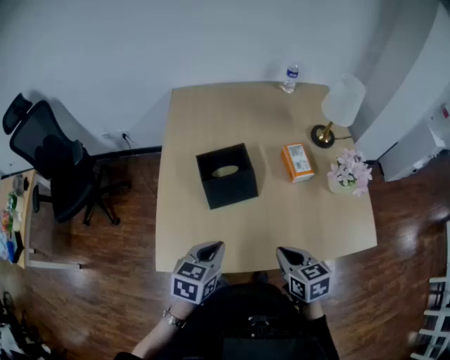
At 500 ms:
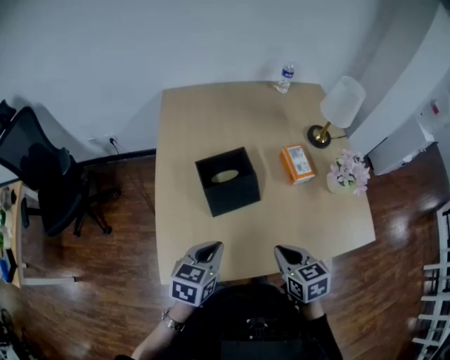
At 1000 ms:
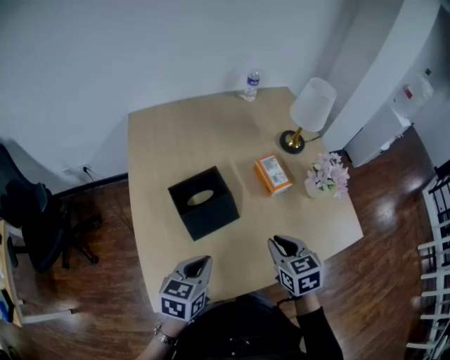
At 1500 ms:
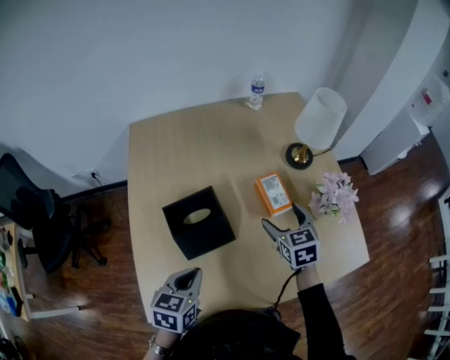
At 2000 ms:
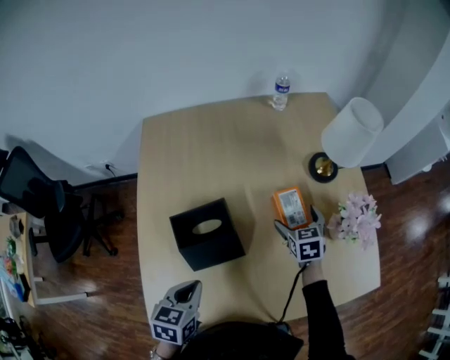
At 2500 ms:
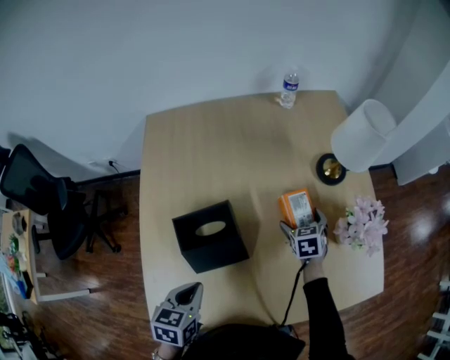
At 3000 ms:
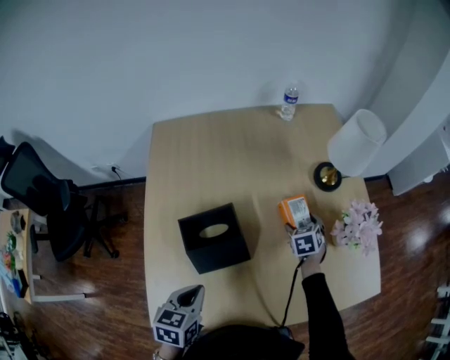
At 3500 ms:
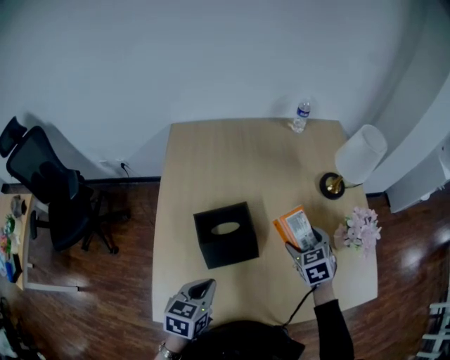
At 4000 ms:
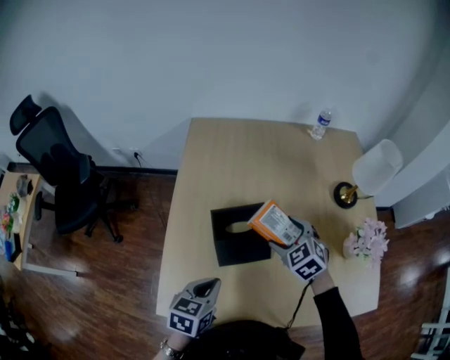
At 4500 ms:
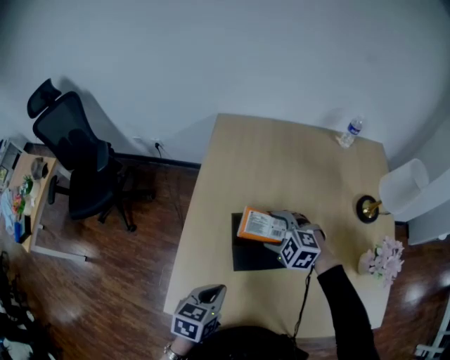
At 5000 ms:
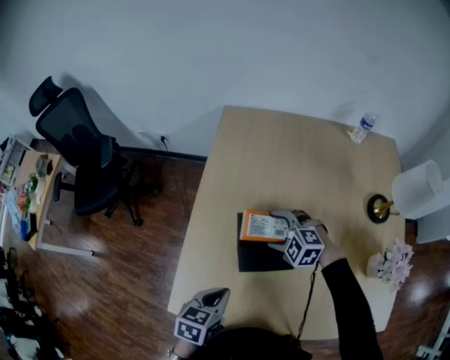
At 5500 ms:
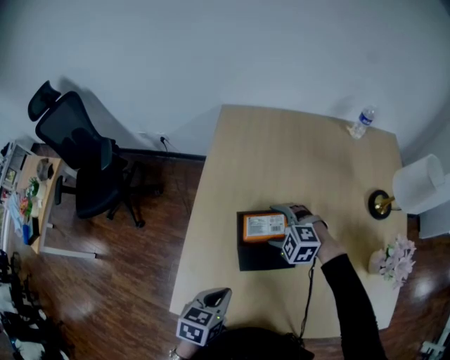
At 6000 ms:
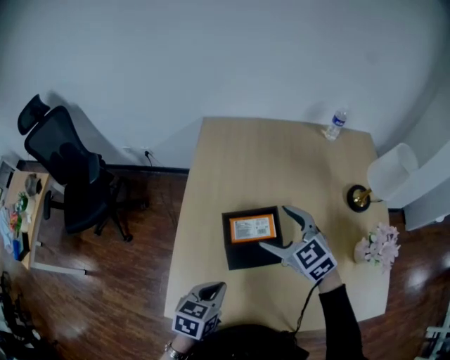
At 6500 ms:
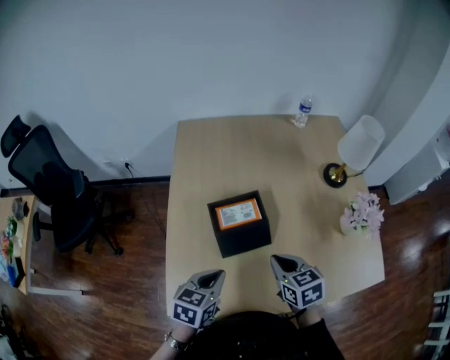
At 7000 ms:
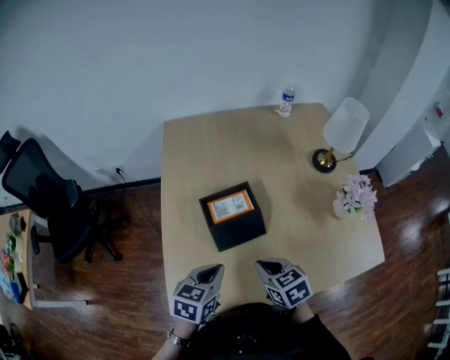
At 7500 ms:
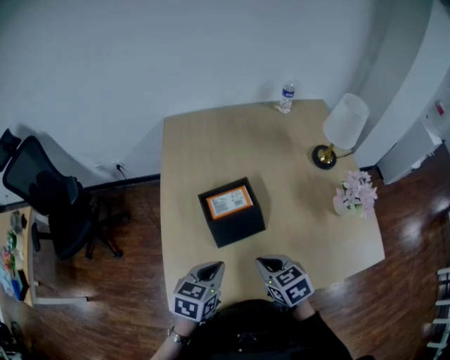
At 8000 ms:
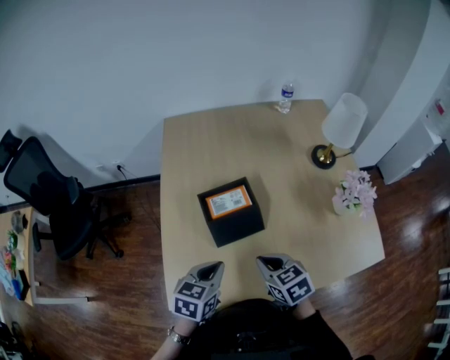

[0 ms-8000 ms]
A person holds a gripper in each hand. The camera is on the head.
0 ms to 2000 ms: The left gripper moves forward, approximately 10 cm; the right gripper travels forward by approximately 35 cm, swivels some 20 degrees, and opens its fingers.
2000 ms to 4000 ms: The right gripper heads to the left, upward and backward, covering roughly 20 cm, and turns by approximately 40 degrees.
4000 ms to 6000 ms: The right gripper moves to the left and upward, some 10 cm, and rotates roughly 20 degrees.
6000 ms to 8000 ms: The right gripper travels backward by roughly 20 cm, turns by about 30 degrees, and closes its fingers.

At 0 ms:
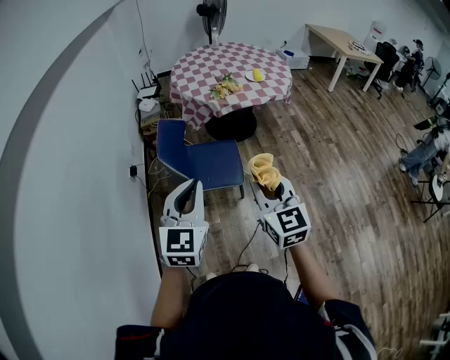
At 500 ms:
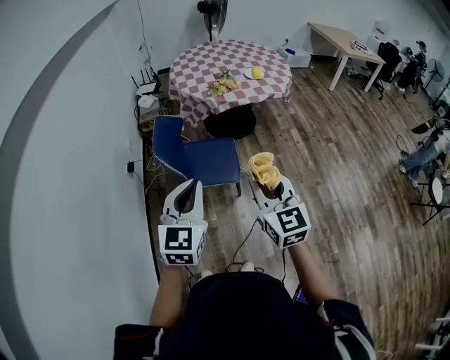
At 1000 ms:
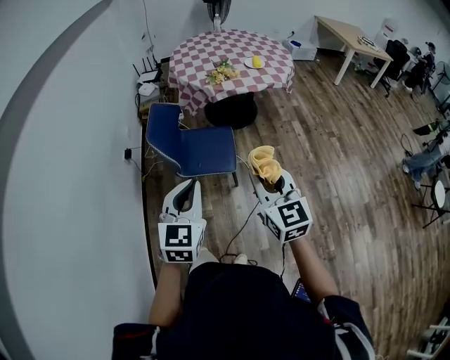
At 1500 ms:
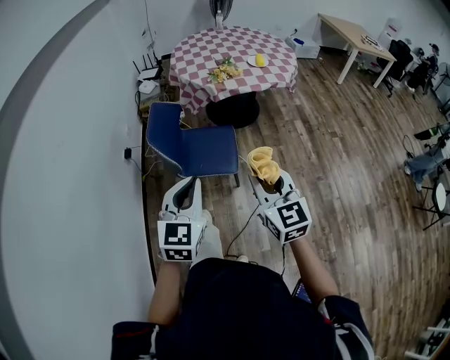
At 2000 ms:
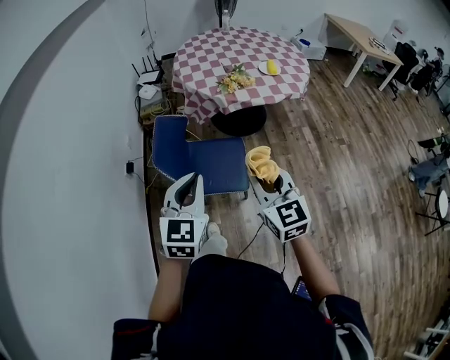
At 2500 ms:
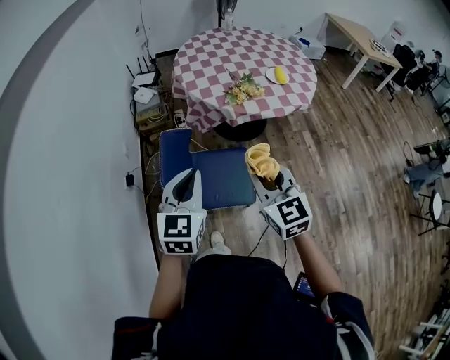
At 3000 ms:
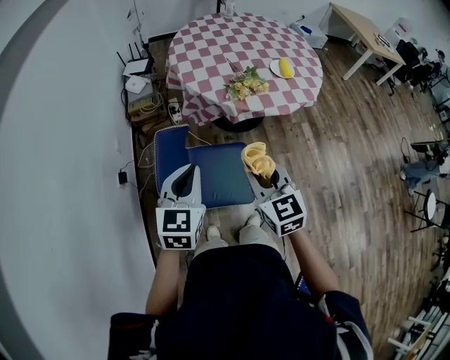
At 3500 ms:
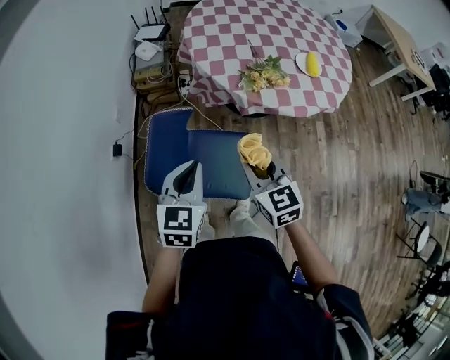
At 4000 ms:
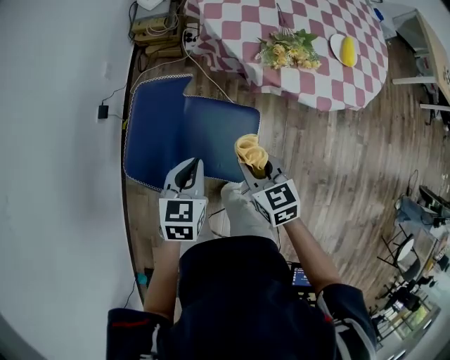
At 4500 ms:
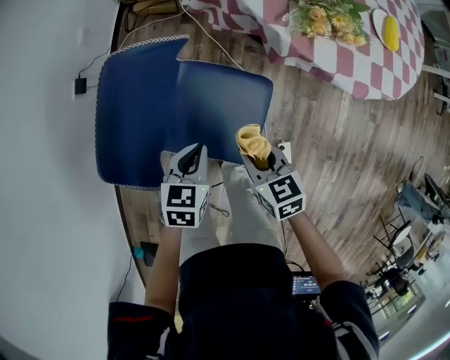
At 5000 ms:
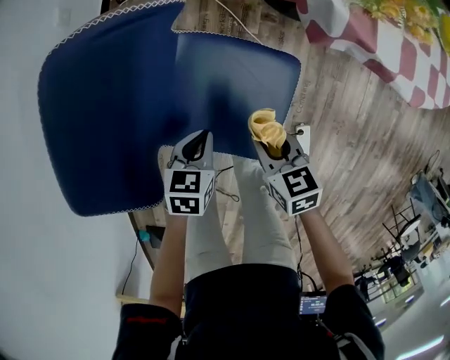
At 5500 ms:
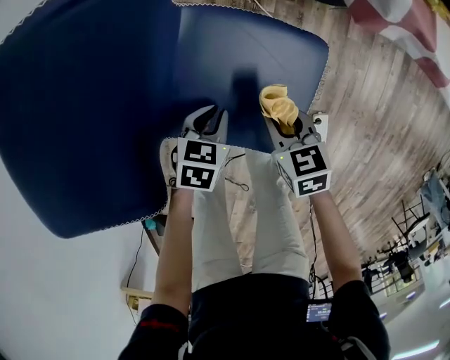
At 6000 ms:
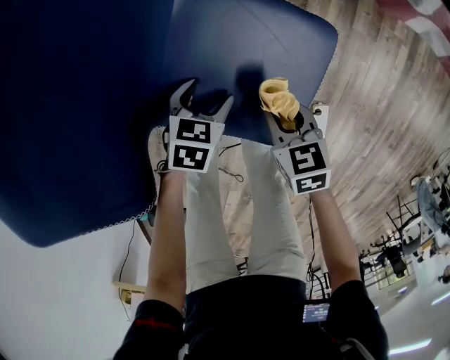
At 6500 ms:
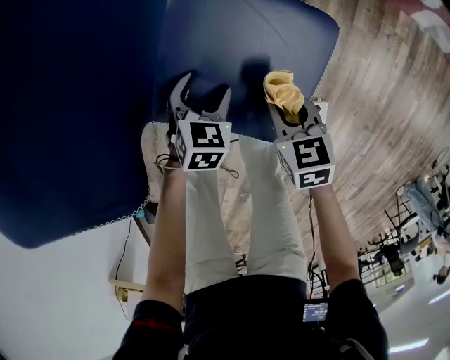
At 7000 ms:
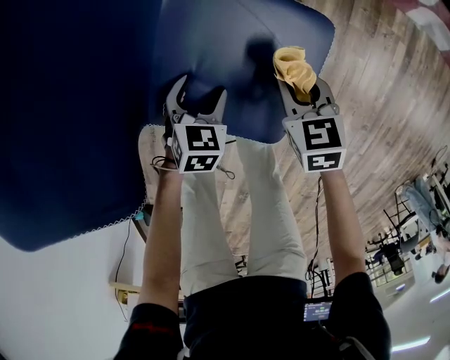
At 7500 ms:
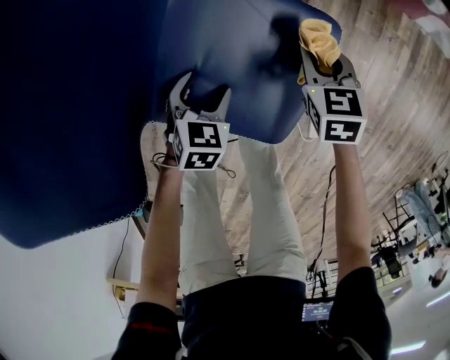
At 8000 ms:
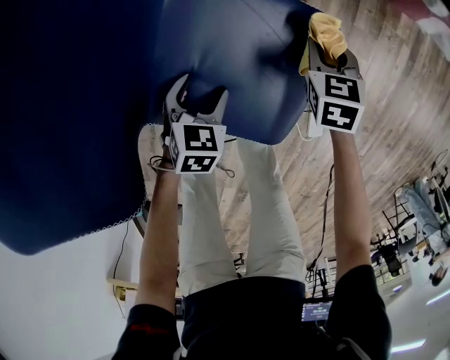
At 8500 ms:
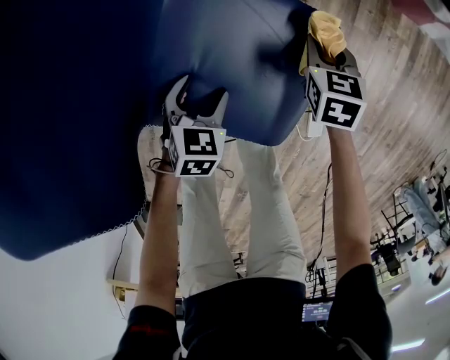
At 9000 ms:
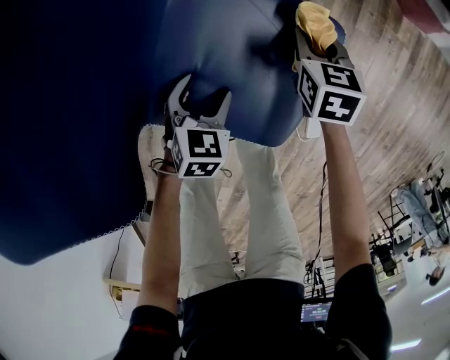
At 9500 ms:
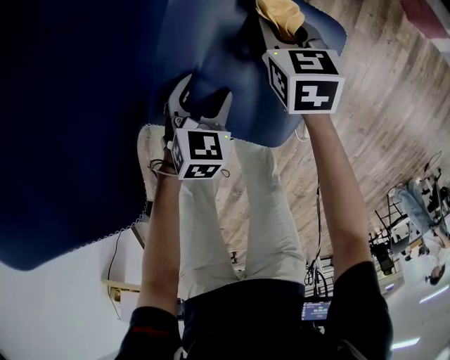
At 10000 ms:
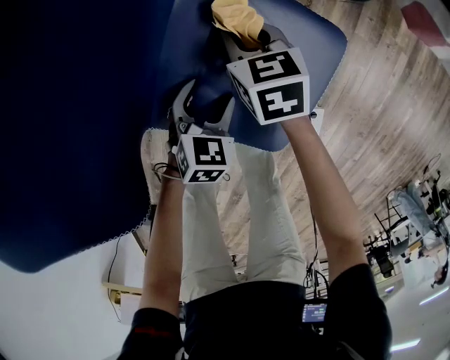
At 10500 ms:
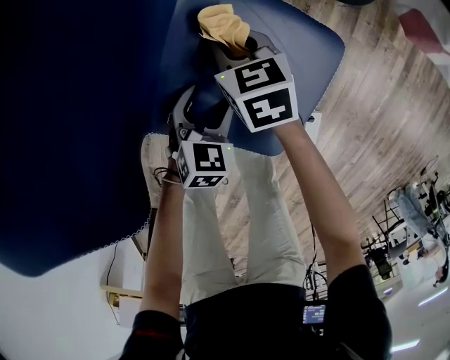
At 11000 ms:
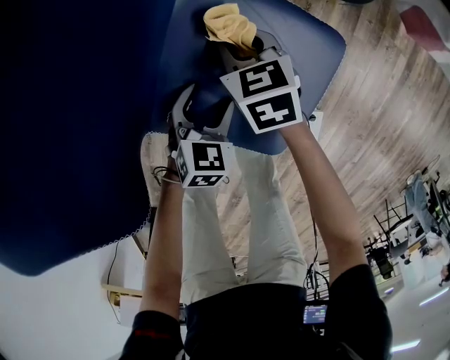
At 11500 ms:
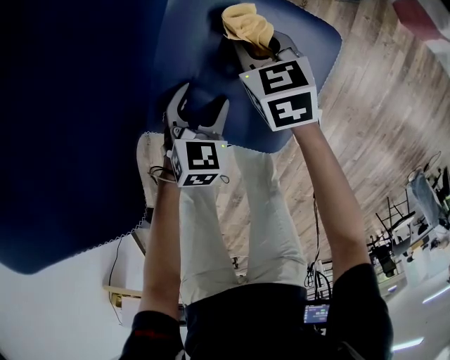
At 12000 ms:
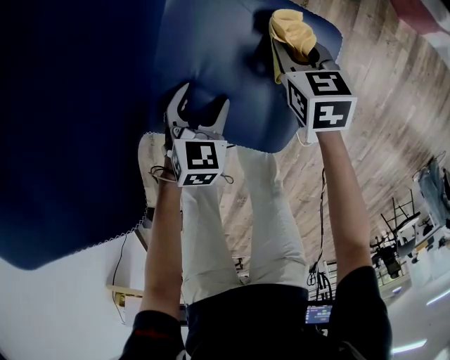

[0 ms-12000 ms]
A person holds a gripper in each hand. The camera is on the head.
0 ms to 2000 ms: The left gripper travels forward and downward by roughly 15 cm; the right gripper travels forward by approximately 15 cm.
2000 ms to 4000 ms: Both grippers move forward and downward, roughly 40 cm. The left gripper swivels roughly 40 degrees, while the right gripper angles its fingers downward, by roughly 30 degrees.
4000 ms to 6000 ms: The two grippers go roughly 40 cm downward. The right gripper changes its angle by about 20 degrees, while the left gripper swivels some 20 degrees, and opens its fingers.
6000 ms to 8000 ms: The right gripper moves forward and to the right, approximately 15 cm, and swivels about 20 degrees.
8000 ms to 10000 ms: The right gripper is displaced to the left by approximately 20 cm, and changes its angle by some 20 degrees.
10000 ms to 12000 ms: The right gripper moves to the right, roughly 10 cm.

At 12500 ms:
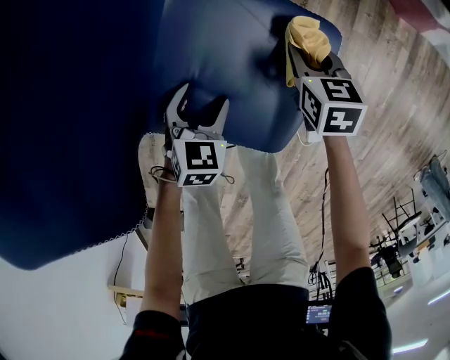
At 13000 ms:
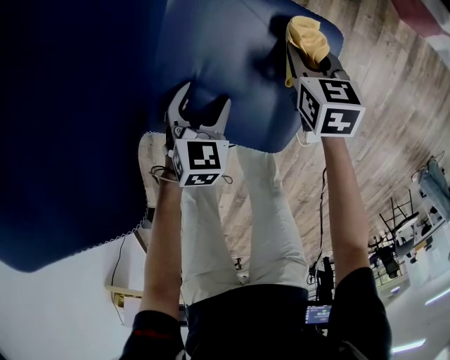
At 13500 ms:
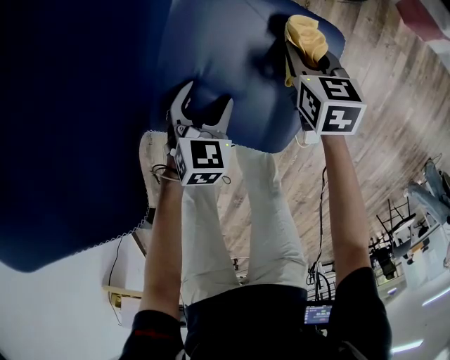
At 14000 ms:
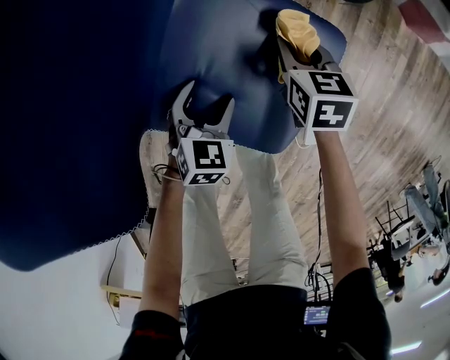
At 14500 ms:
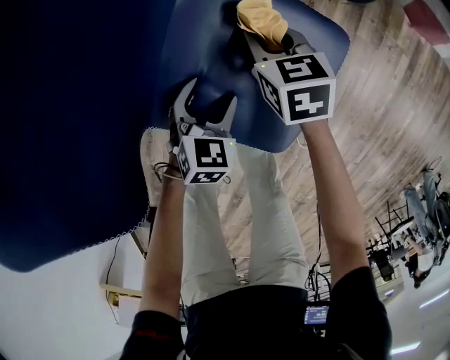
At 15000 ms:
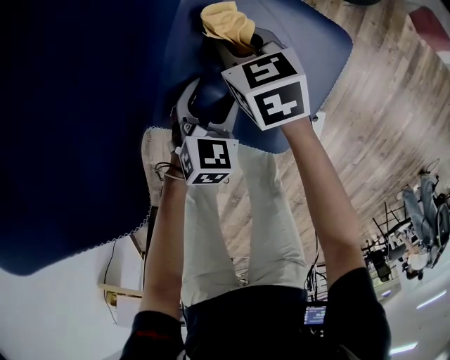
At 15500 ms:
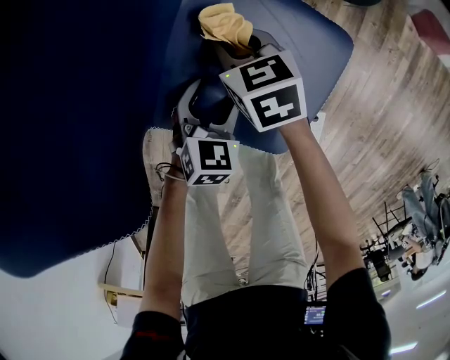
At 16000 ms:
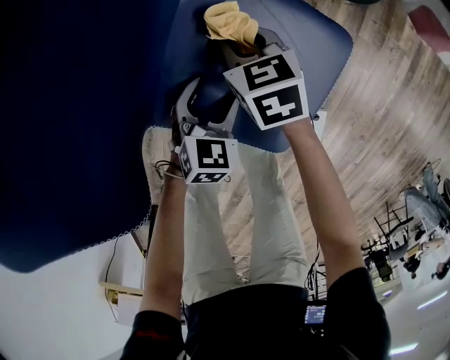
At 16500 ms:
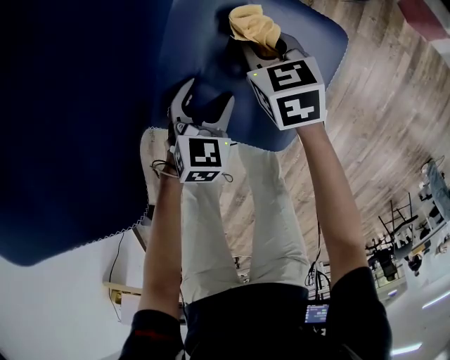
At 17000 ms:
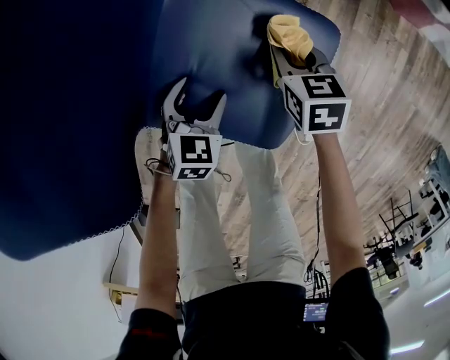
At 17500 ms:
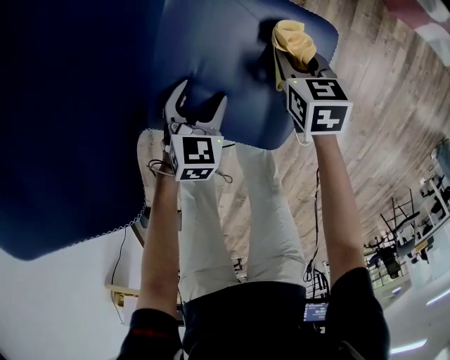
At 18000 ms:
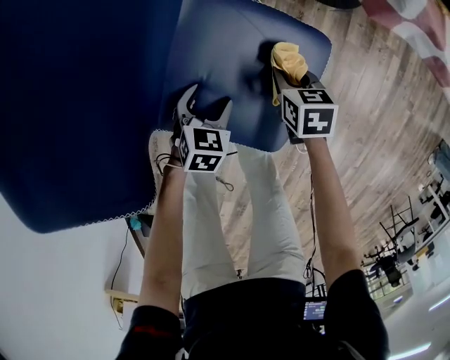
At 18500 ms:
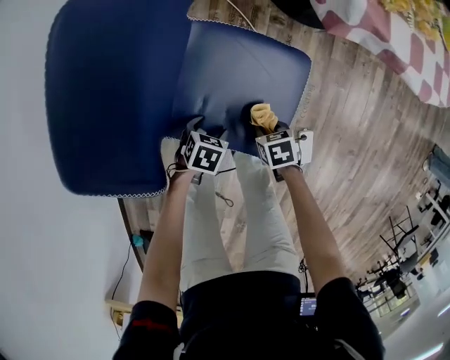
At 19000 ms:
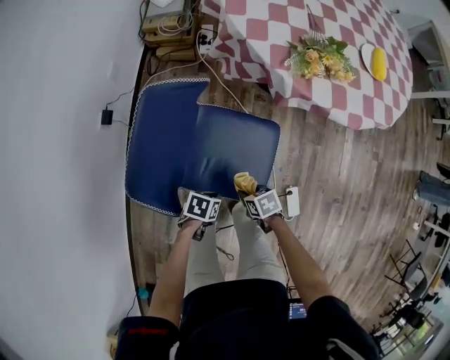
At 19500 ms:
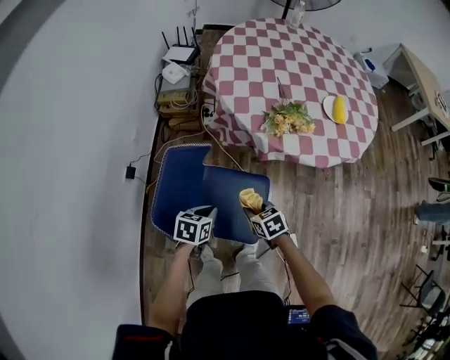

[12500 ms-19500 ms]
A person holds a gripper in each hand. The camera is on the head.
12500 ms to 14500 ms: The right gripper goes approximately 10 cm to the left.
14500 ms to 16000 ms: The right gripper shifts roughly 5 cm to the left.
16000 ms to 17500 ms: The right gripper heads to the right, covering some 15 cm.
17500 ms to 19500 ms: Both grippers move upward, approximately 35 cm. The left gripper closes its fingers.
